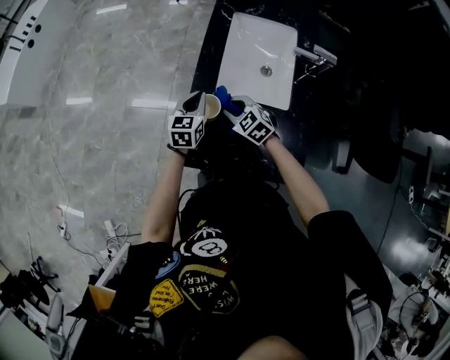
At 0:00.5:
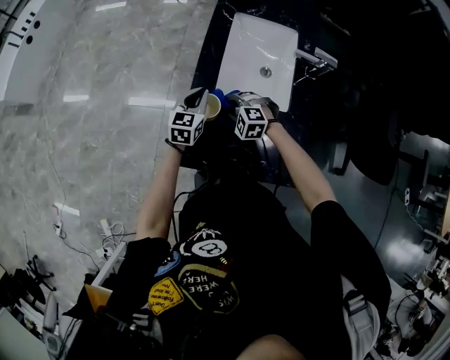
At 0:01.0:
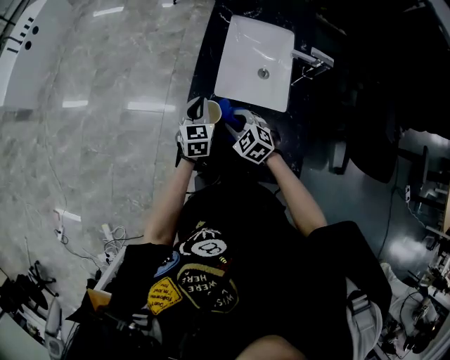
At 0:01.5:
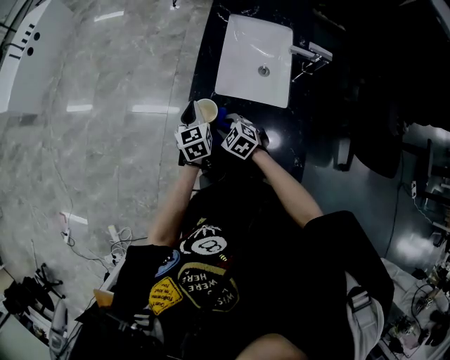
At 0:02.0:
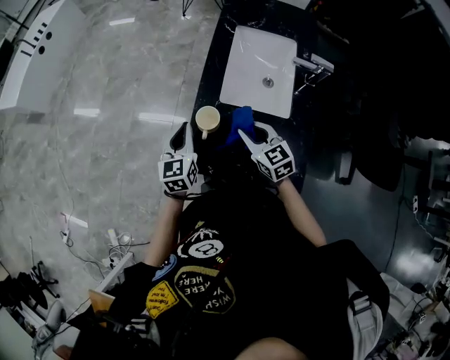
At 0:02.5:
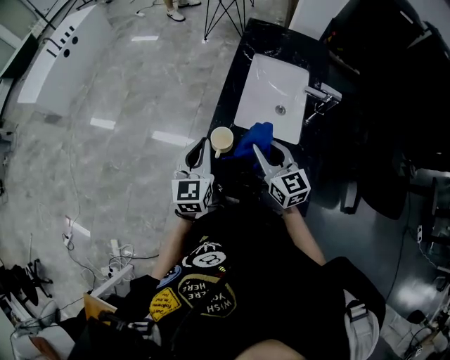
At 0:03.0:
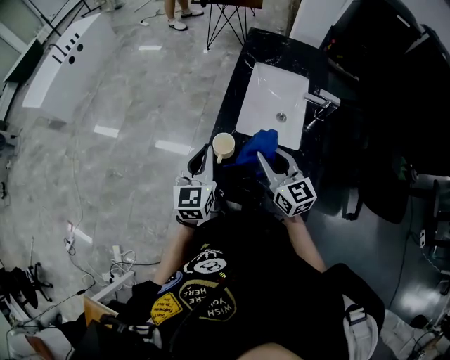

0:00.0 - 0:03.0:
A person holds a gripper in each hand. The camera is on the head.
0:00.0 - 0:01.5: The right gripper swings up and down, about 5 cm each way, with 2 reversals; the left gripper rotates approximately 20 degrees.
0:01.5 - 0:03.0: The right gripper goes approximately 25 cm upward, and angles its fingers upward, by roughly 50 degrees. The left gripper moves upward and backward, approximately 20 cm.

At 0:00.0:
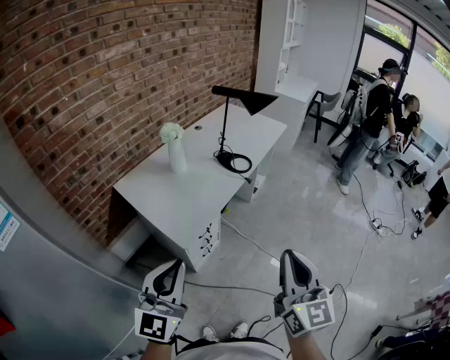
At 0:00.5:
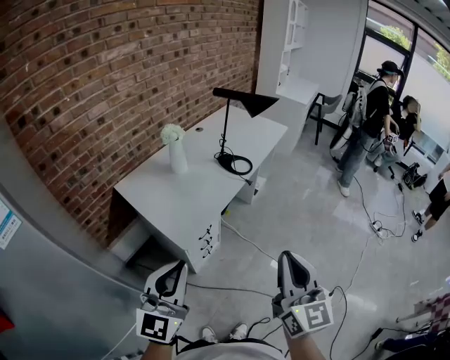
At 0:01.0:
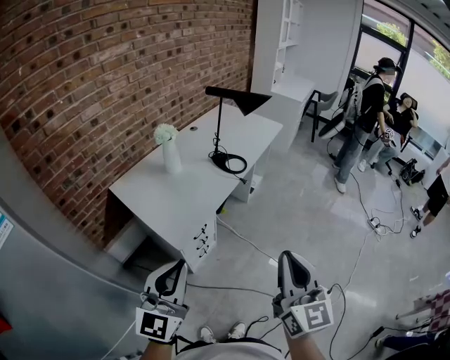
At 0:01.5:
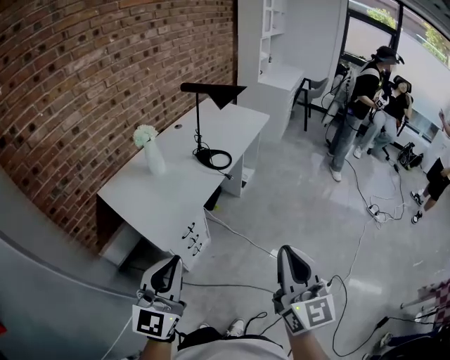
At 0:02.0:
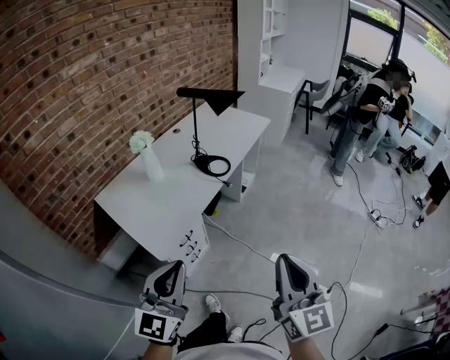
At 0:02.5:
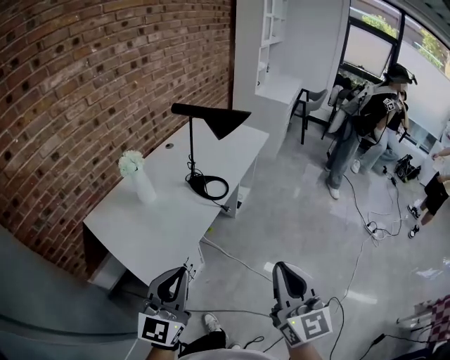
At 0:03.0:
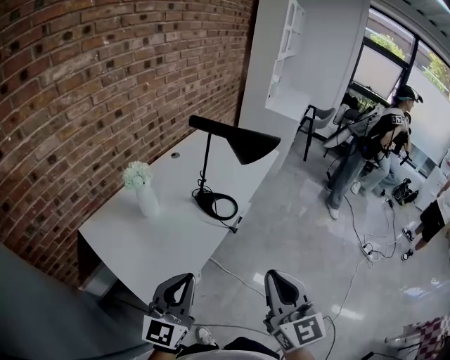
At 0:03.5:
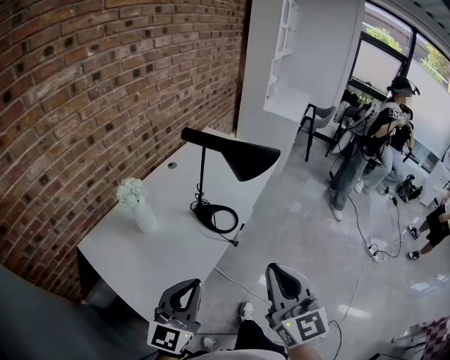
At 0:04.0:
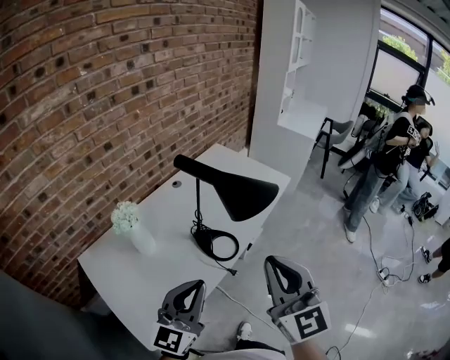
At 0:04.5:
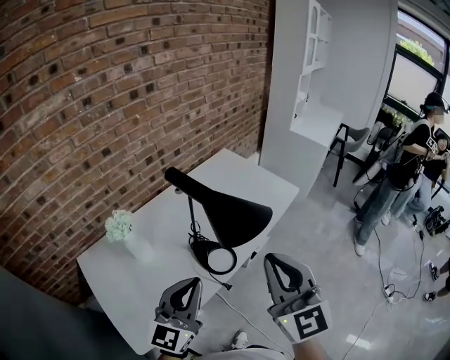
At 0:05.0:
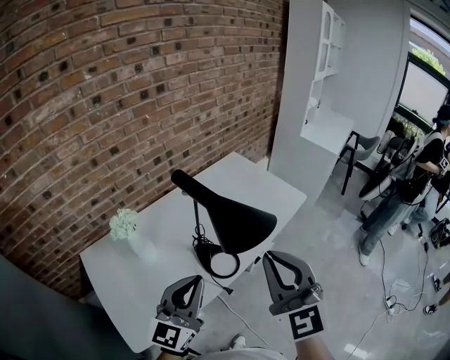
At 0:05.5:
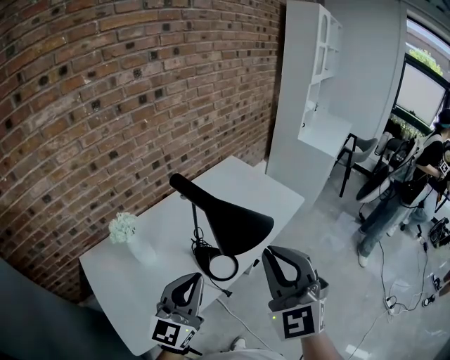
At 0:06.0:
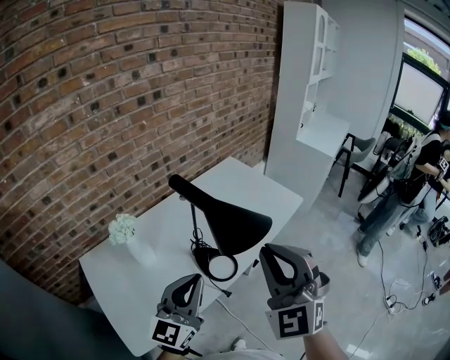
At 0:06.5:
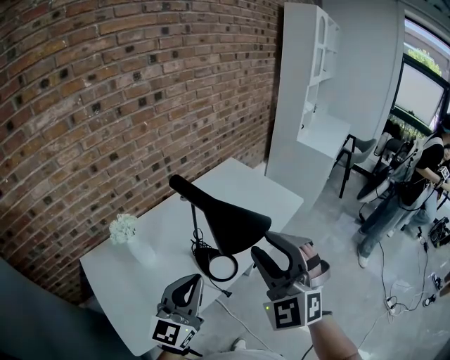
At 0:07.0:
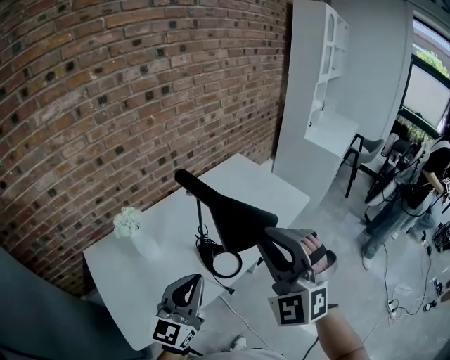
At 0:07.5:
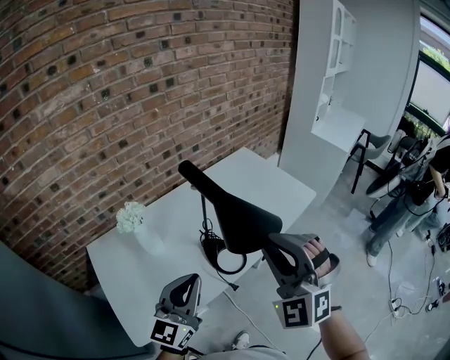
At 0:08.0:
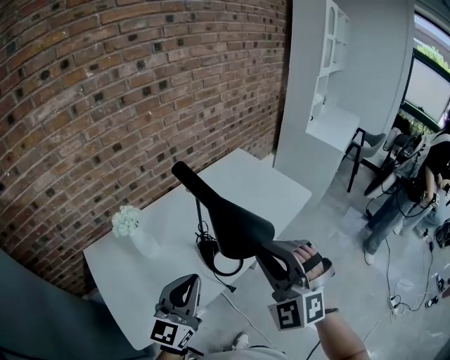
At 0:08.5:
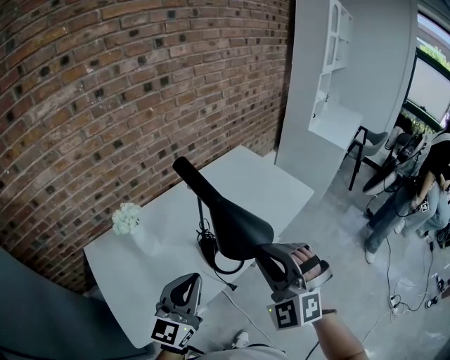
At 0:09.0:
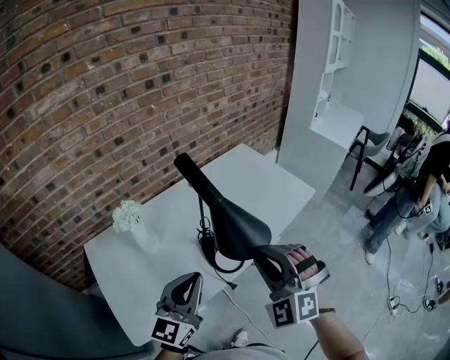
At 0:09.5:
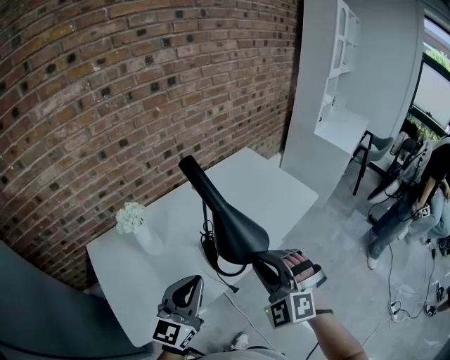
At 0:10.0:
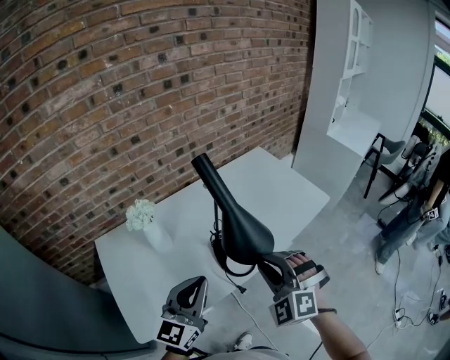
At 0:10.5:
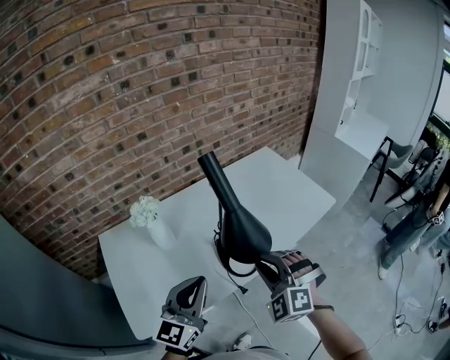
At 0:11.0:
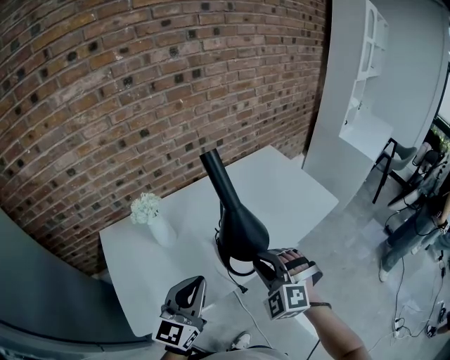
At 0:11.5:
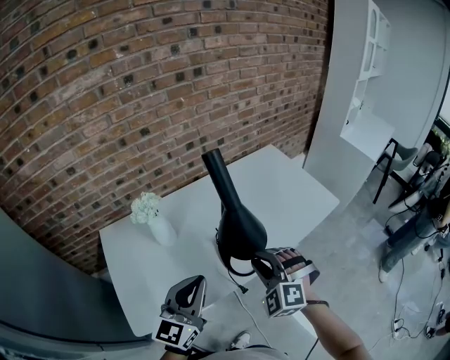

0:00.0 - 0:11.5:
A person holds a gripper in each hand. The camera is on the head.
0:00.0 - 0:02.0: The right gripper is displaced to the right by some 10 cm. Meanwhile the left gripper travels to the right and forward by about 15 cm.
0:02.0 - 0:04.0: The two grippers go about 40 cm forward.
0:04.0 - 0:06.0: Both grippers move forward, about 10 cm. The right gripper turns by some 40 degrees.
0:06.0 - 0:07.5: There are only small adjustments of the grippers.
0:07.5 - 0:09.5: The right gripper moves downward, approximately 10 cm.
0:09.5 - 0:11.5: The right gripper moves downward, roughly 10 cm.

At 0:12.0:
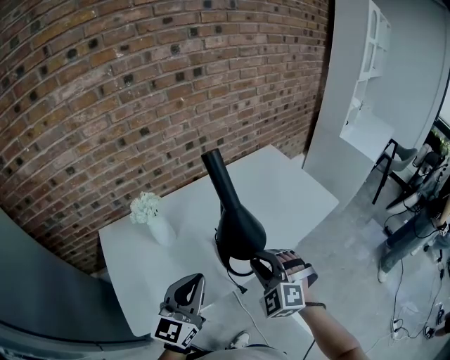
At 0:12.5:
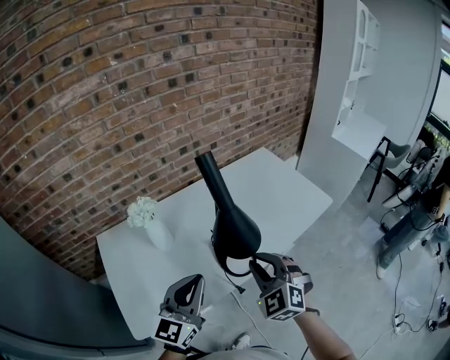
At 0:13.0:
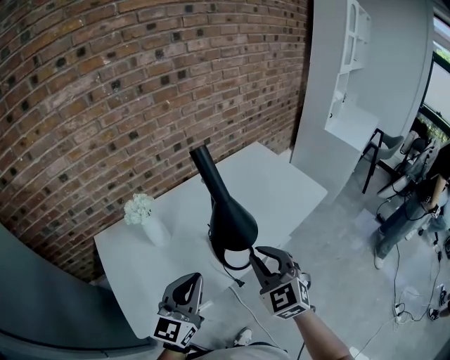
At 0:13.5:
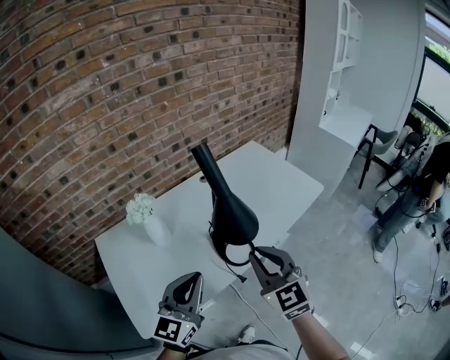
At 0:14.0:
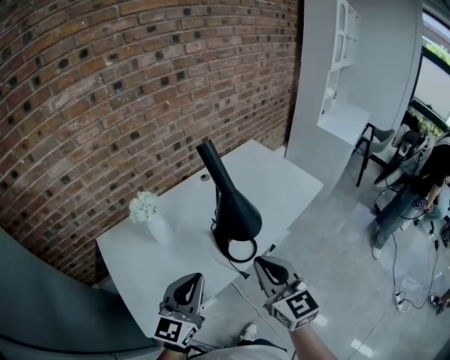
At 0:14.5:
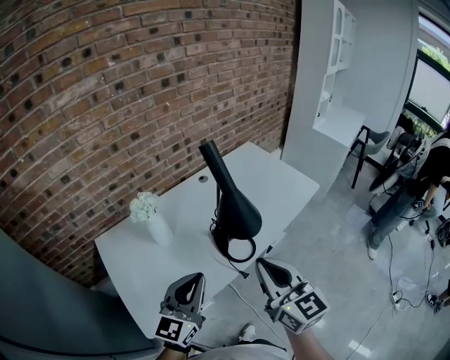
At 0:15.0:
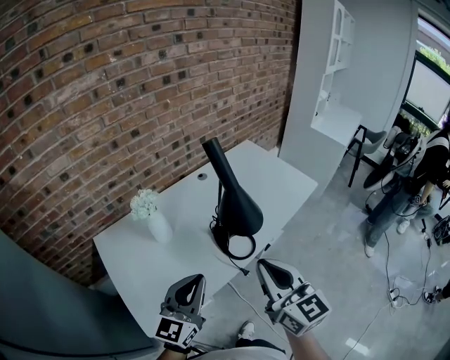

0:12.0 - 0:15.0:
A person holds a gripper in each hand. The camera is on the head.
0:12.0 - 0:13.5: The right gripper heads upward and backward, covering approximately 10 cm, and twists some 40 degrees clockwise, seen from behind.
0:13.5 - 0:15.0: The right gripper travels backward by some 5 cm, and changes its angle by approximately 30 degrees.

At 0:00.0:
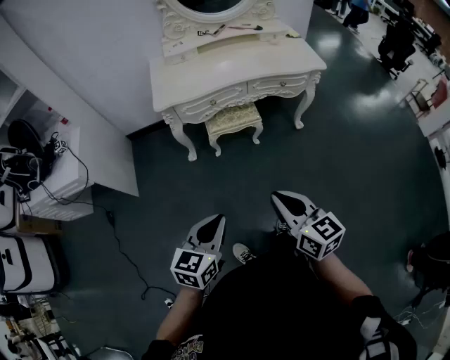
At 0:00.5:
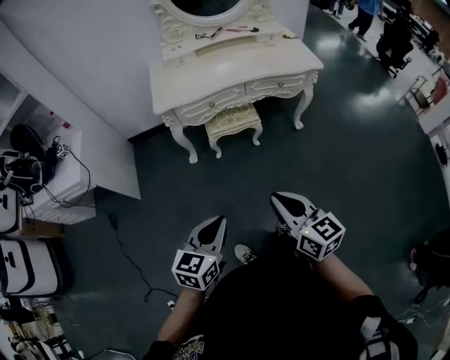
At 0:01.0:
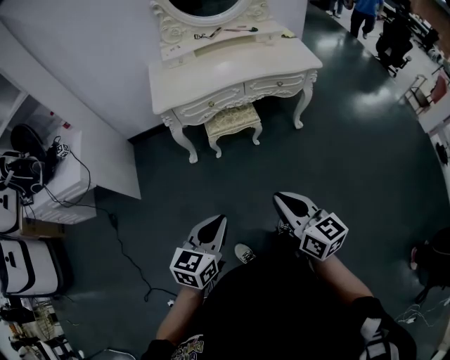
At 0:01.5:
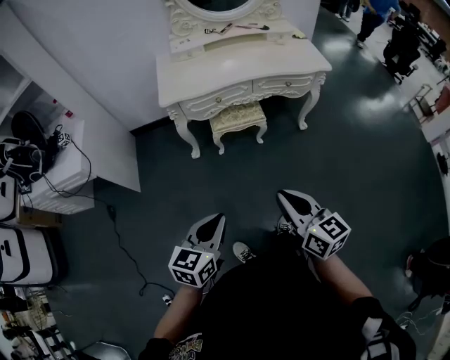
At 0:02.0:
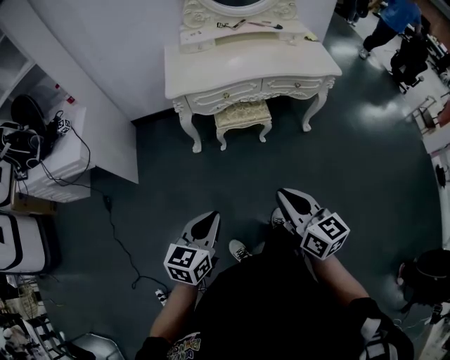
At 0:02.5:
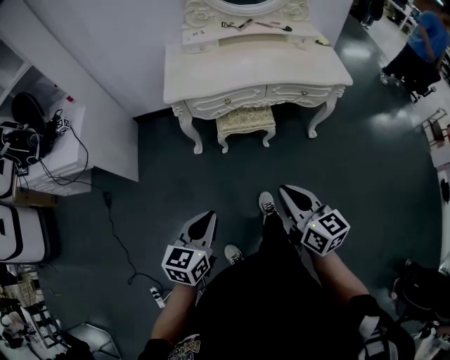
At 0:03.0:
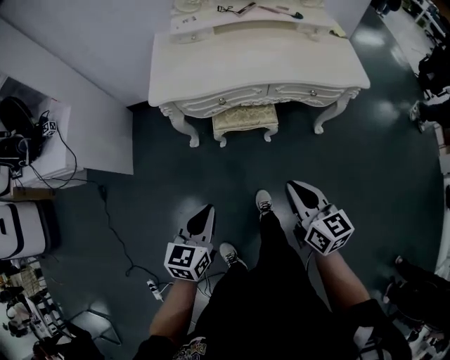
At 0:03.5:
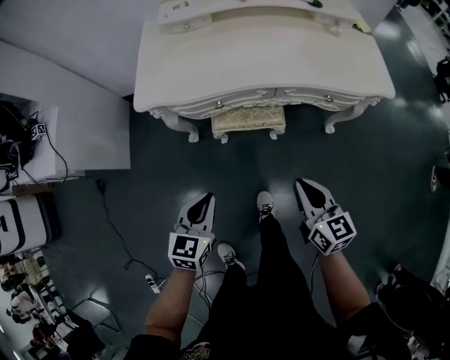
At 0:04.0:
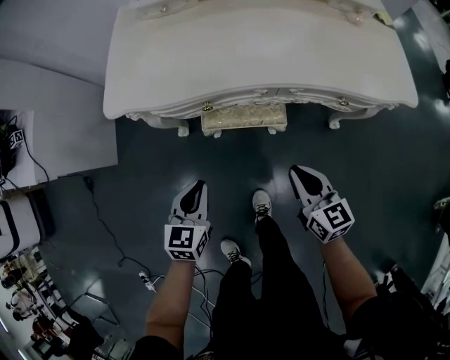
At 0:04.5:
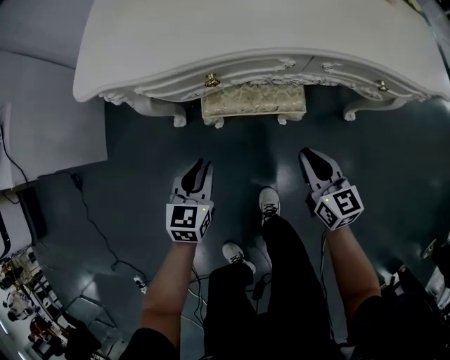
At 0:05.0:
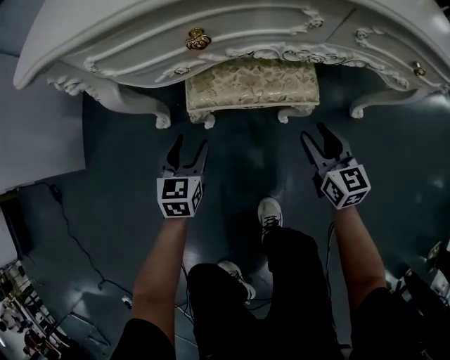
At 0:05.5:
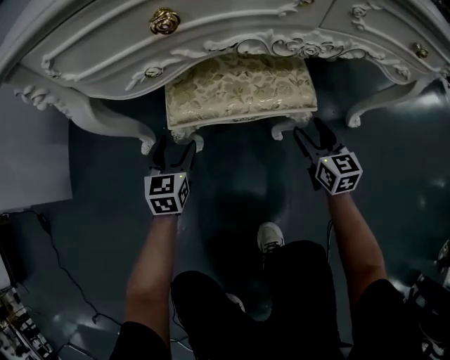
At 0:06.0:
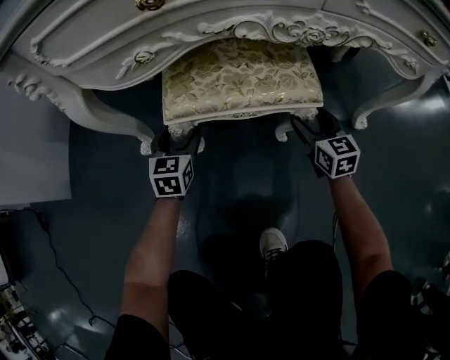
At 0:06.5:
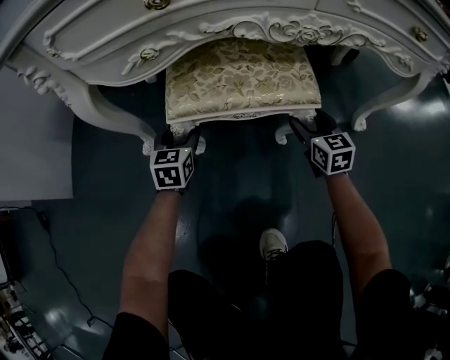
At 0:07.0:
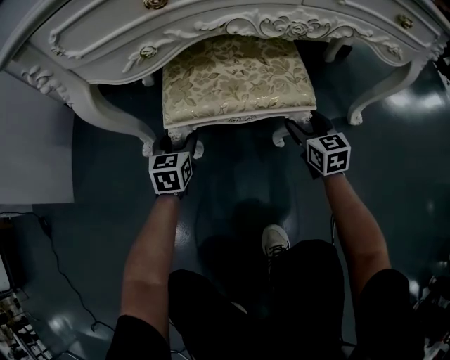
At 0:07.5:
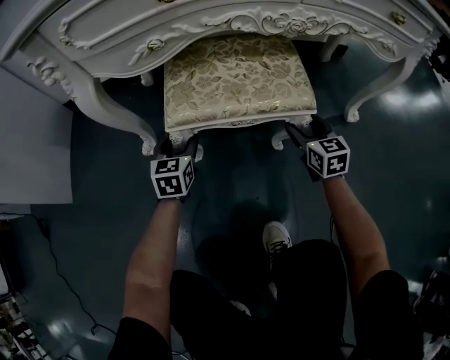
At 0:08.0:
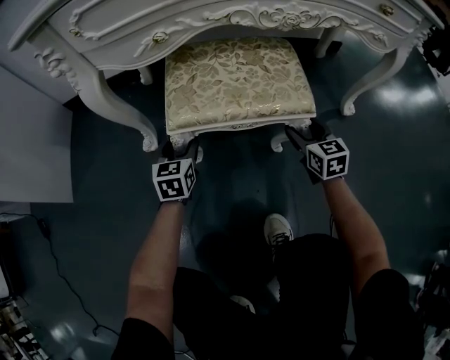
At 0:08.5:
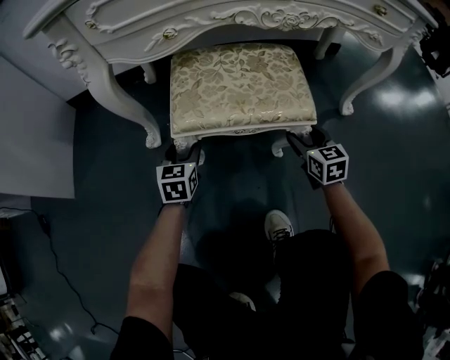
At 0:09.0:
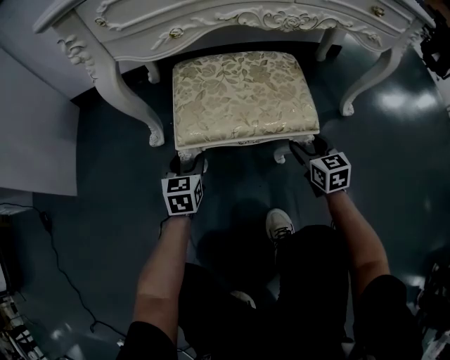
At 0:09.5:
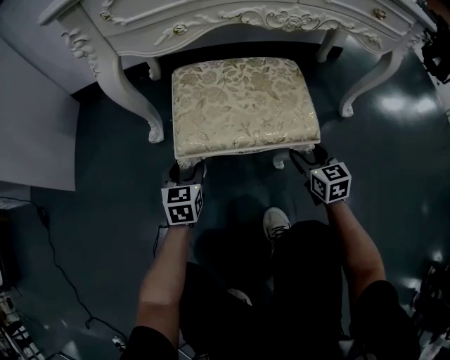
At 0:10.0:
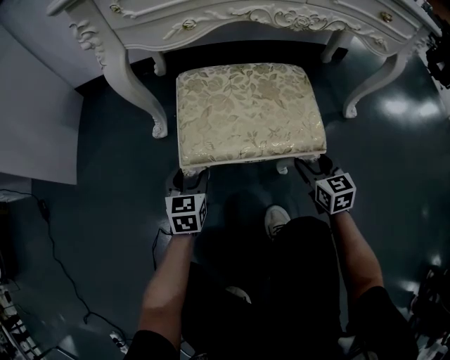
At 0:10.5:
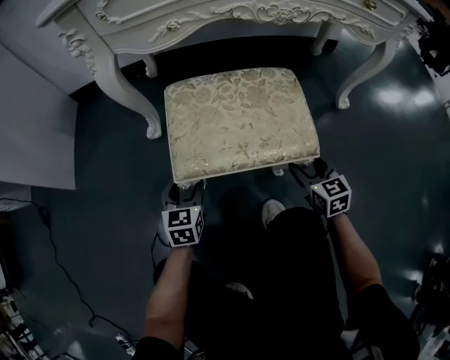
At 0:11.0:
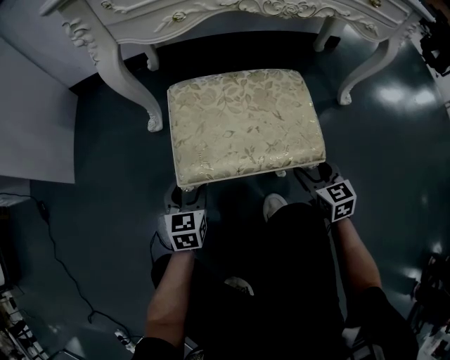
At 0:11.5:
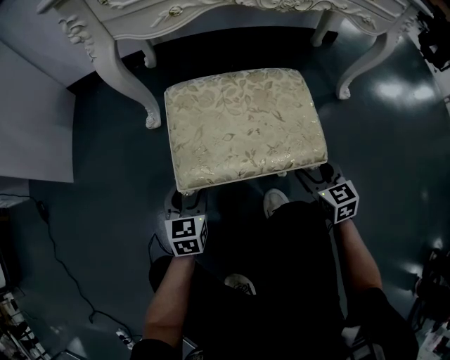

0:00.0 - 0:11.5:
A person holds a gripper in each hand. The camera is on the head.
0:00.0 - 0:02.0: The grippers move only a little.
0:02.0 - 0:04.0: Both grippers are carried forward, approximately 40 cm. Both grippers travel together downward, approximately 30 cm.
0:04.0 - 0:06.0: The grippers both shift downward and forward by approximately 50 cm. The left gripper opens up, while the right gripper rotates some 20 degrees, and opens its fingers.
0:06.0 - 0:09.5: There are only small adjustments of the grippers.
0:09.5 - 0:11.5: Neither gripper changes place.
